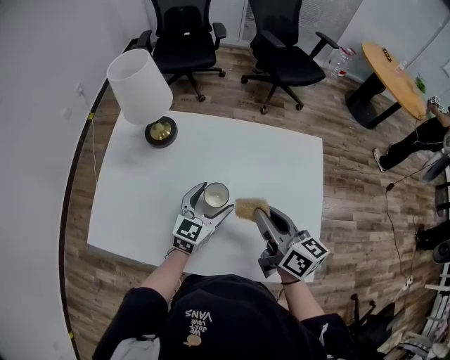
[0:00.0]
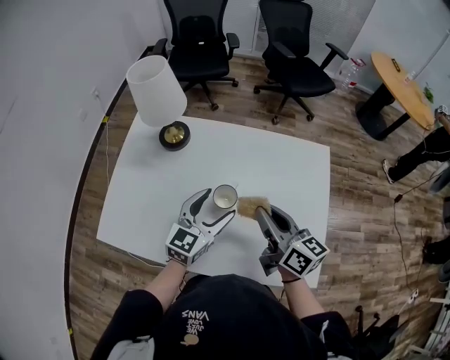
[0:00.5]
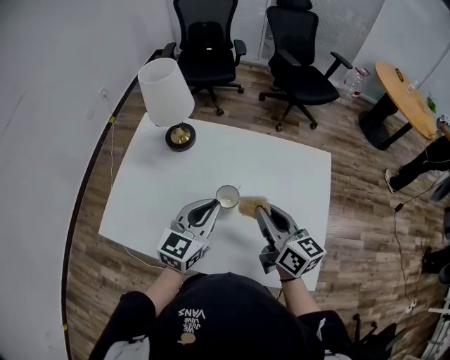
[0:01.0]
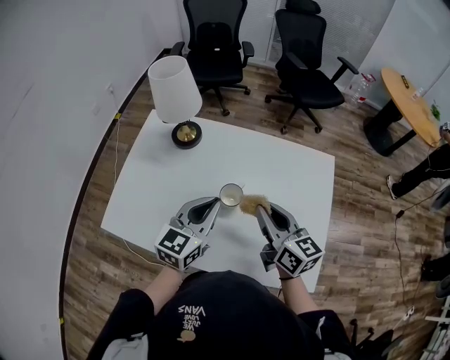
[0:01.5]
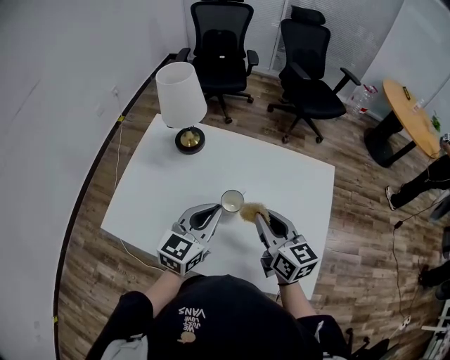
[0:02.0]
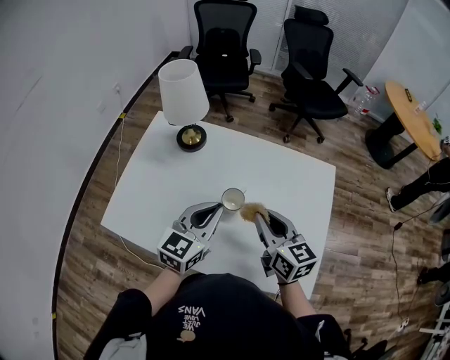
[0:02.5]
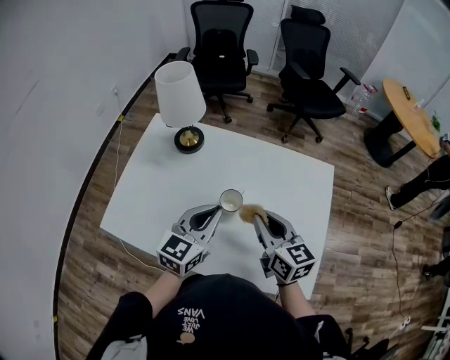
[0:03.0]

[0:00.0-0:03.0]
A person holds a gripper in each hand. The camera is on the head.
0:00.0 to 0:01.5: The left gripper shifts roughly 15 cm upward and backward, and closes up.
0:01.5 to 0:03.0: The grippers move only a little.

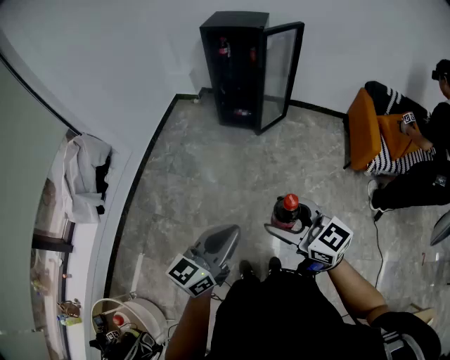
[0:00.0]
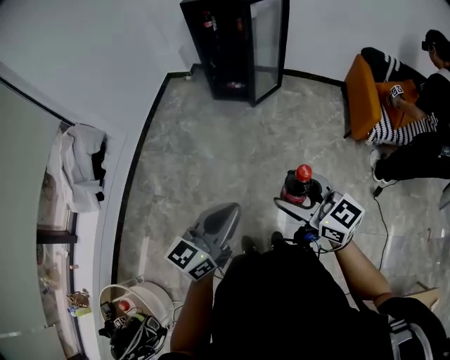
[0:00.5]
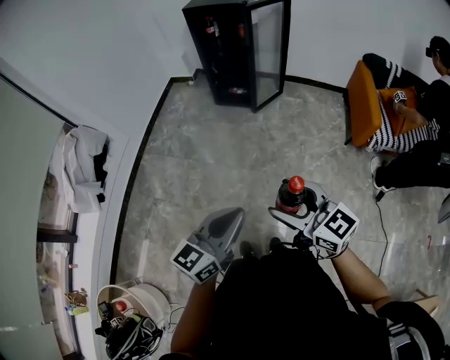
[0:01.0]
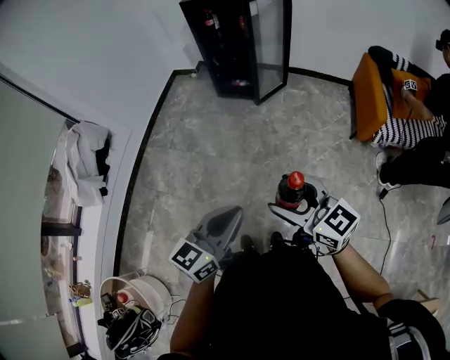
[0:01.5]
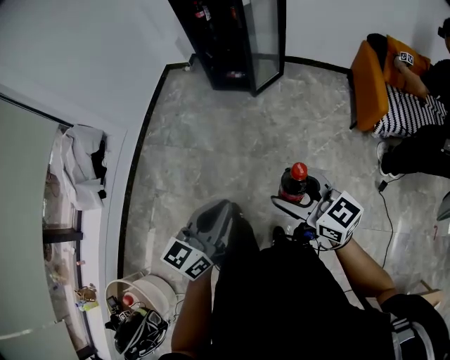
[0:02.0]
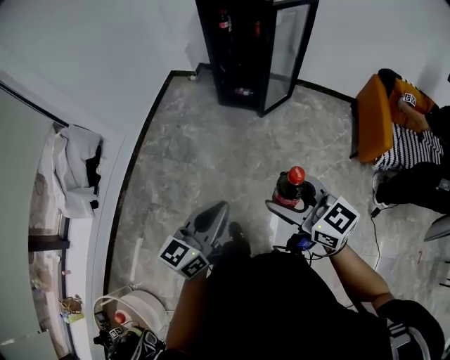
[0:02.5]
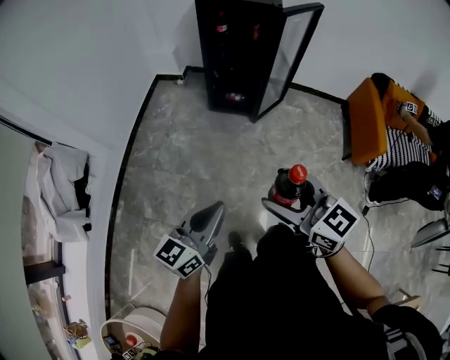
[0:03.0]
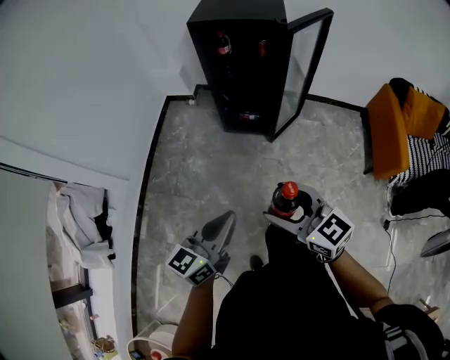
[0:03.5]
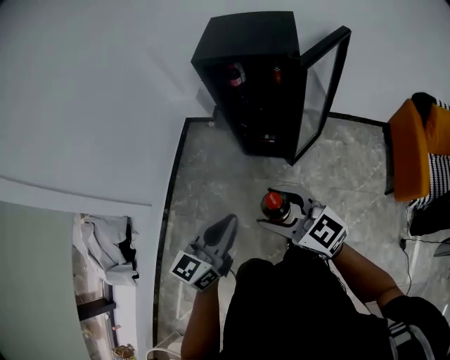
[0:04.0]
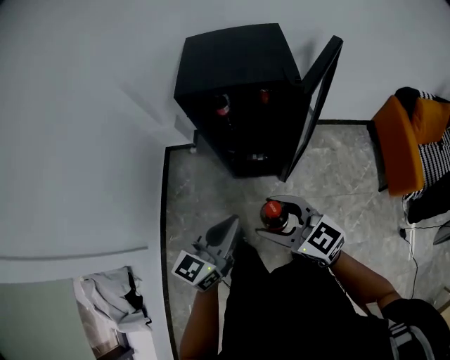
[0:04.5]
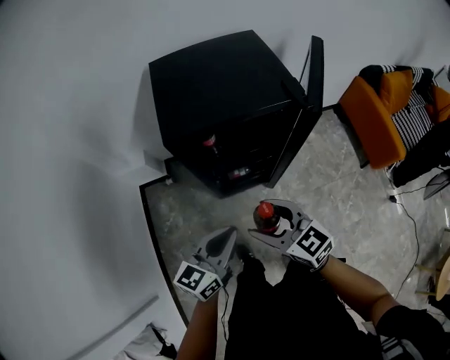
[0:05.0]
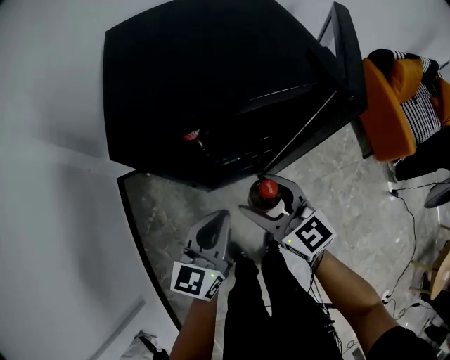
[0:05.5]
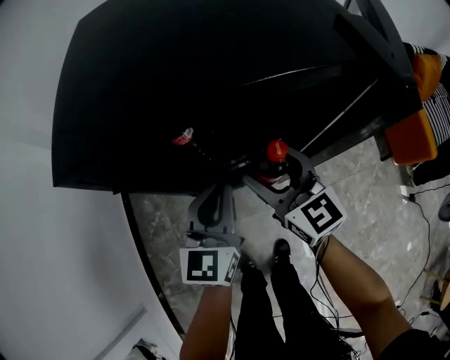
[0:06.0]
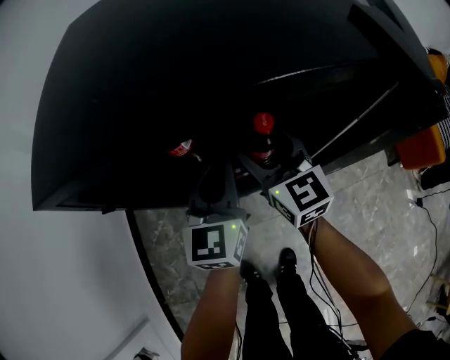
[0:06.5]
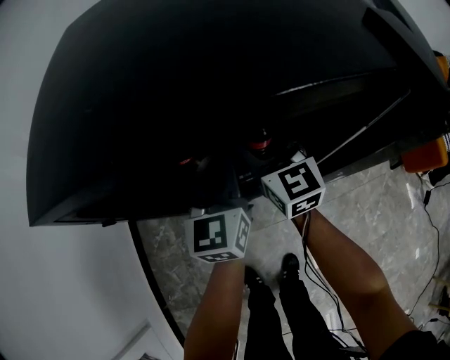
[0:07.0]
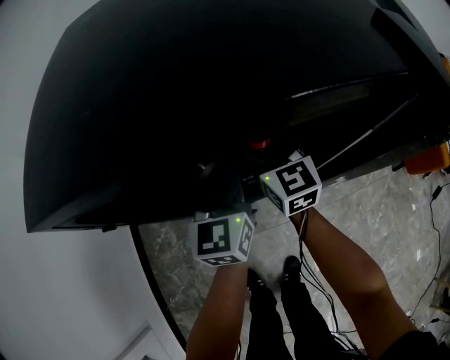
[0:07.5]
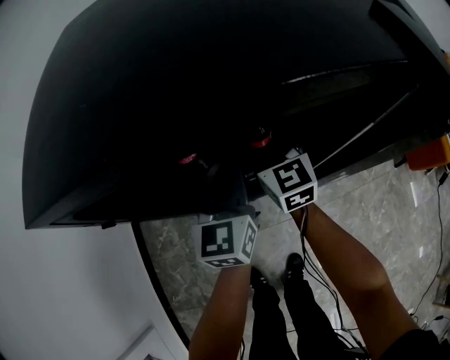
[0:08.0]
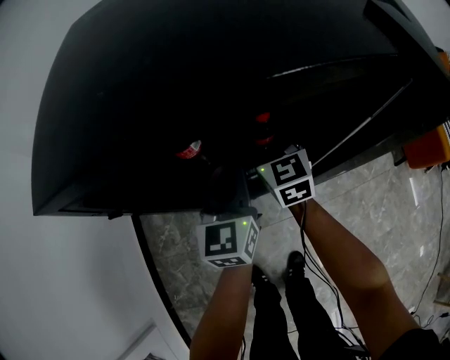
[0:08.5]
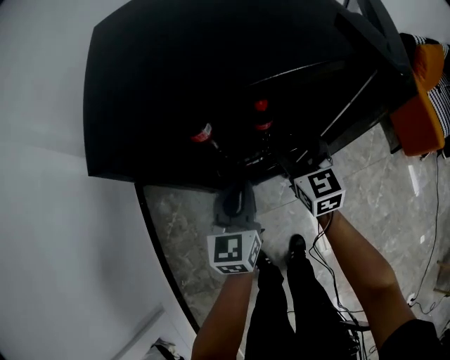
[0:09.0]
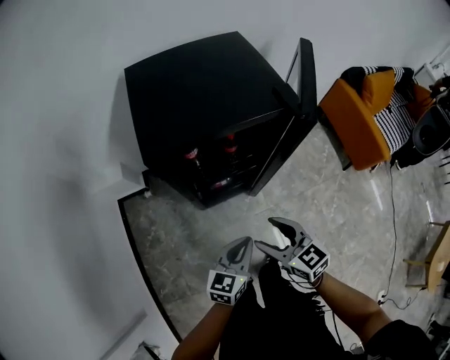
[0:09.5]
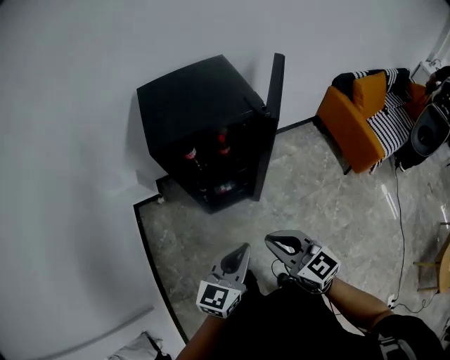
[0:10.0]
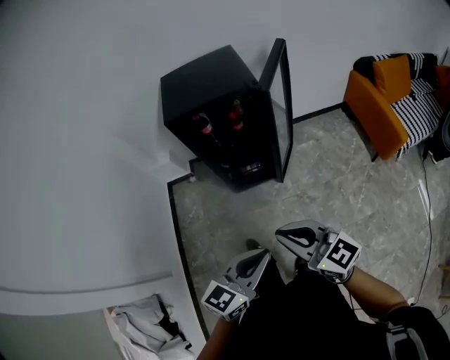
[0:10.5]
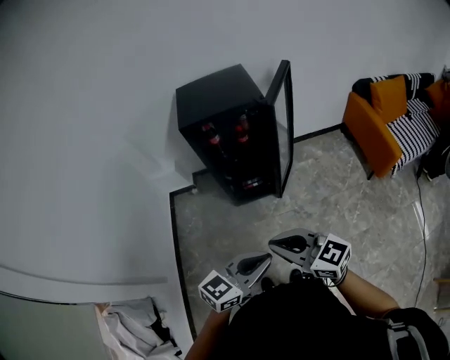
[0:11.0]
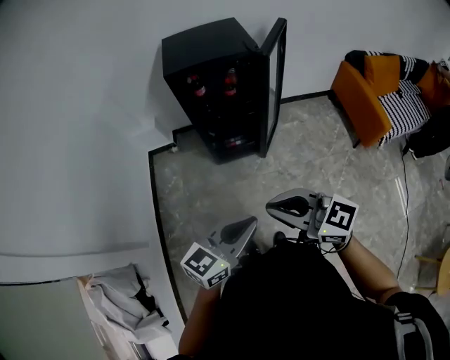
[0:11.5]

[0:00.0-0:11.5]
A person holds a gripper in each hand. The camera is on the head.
0:00.0 to 0:02.0: Both grippers travel together to the right, about 10 cm.
0:02.0 to 0:04.0: Both grippers are carried forward, approximately 50 cm.
0:04.0 to 0:06.0: The two grippers travel together, approximately 50 cm. The right gripper turns by about 50 degrees.
0:06.0 to 0:07.5: The left gripper heads forward, covering roughly 10 cm; the right gripper heads forward and downward, covering some 15 cm.
0:07.5 to 0:09.5: Both grippers move backward, about 30 cm. The left gripper rotates some 30 degrees, while the right gripper swivels roughly 20 degrees.
0:09.5 to 0:11.5: Both grippers travel together backward and upward, some 35 cm. The right gripper turns by roughly 40 degrees, and closes up.

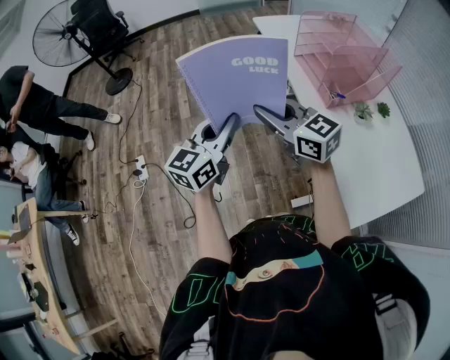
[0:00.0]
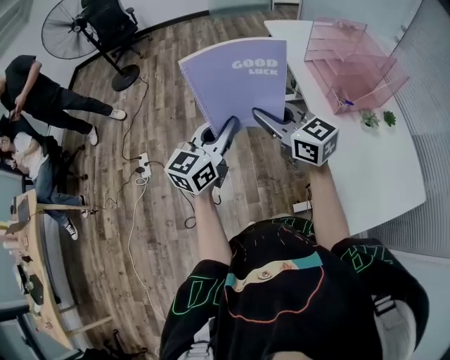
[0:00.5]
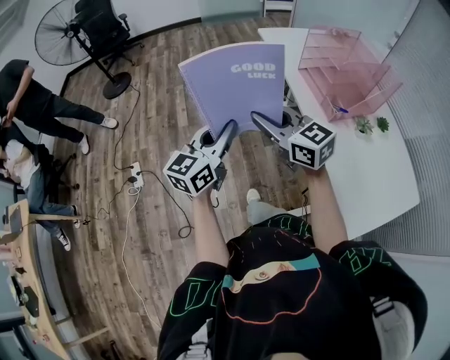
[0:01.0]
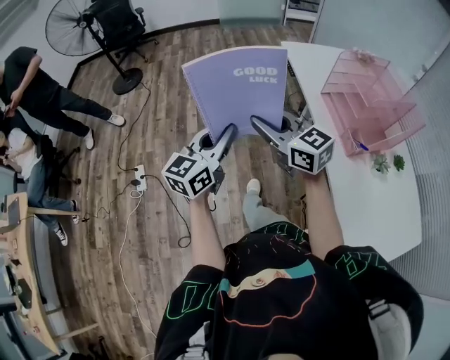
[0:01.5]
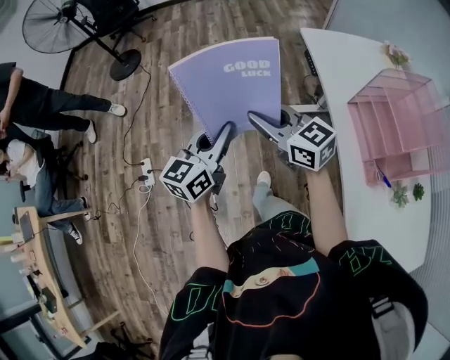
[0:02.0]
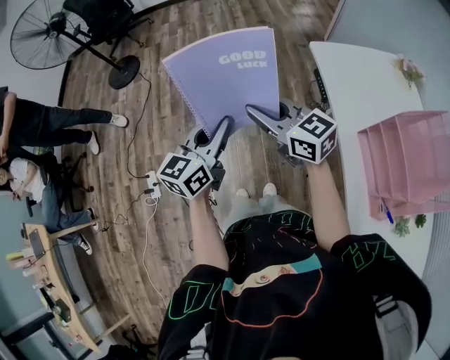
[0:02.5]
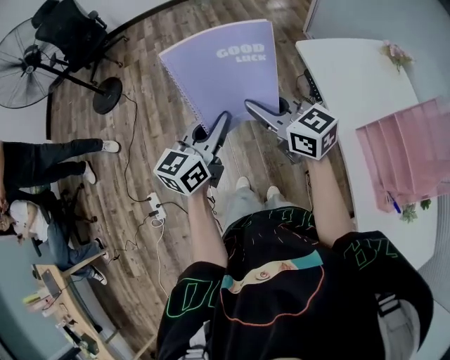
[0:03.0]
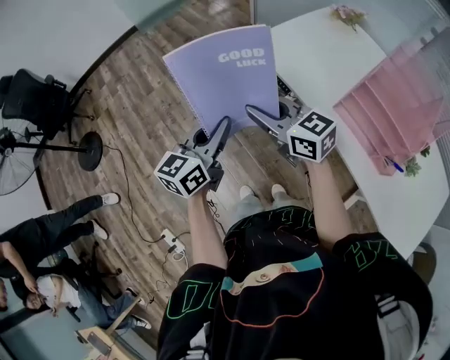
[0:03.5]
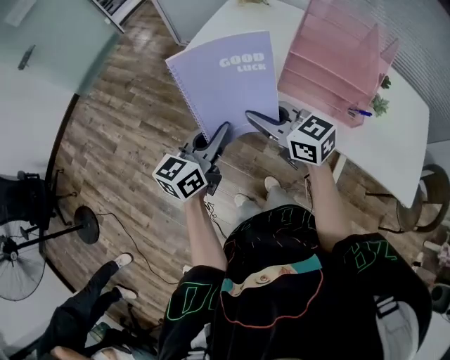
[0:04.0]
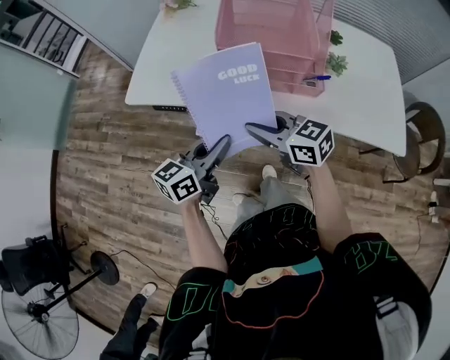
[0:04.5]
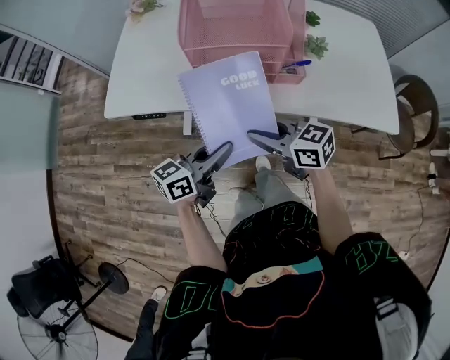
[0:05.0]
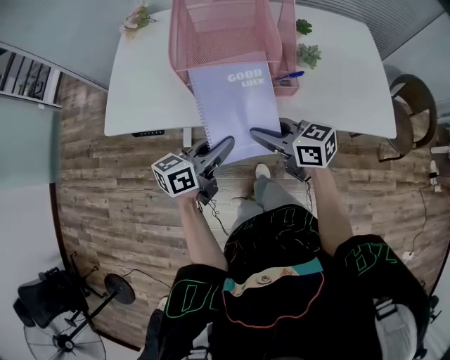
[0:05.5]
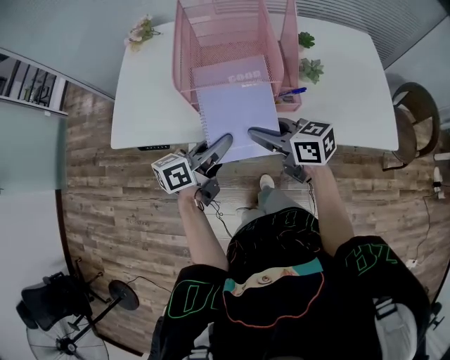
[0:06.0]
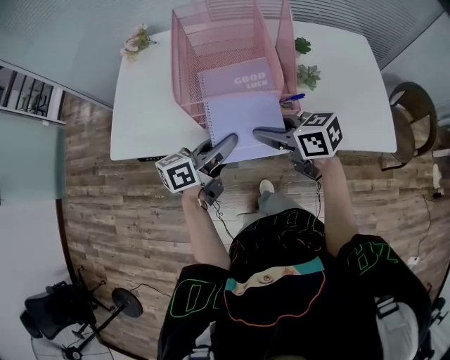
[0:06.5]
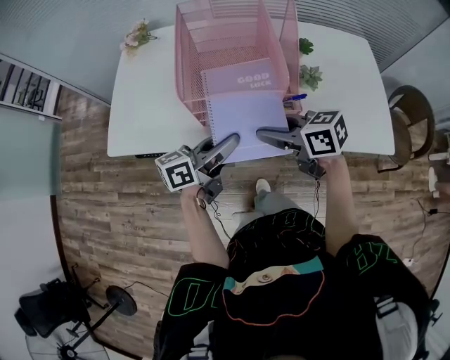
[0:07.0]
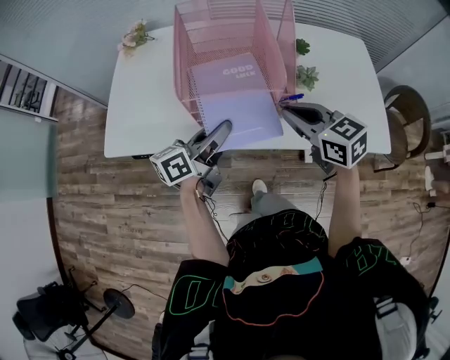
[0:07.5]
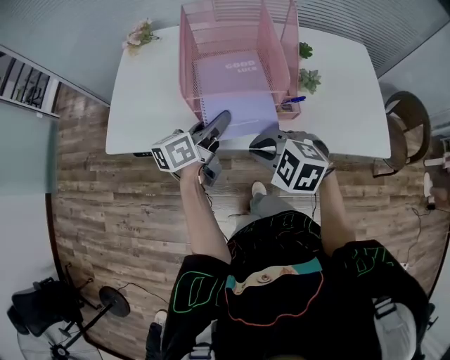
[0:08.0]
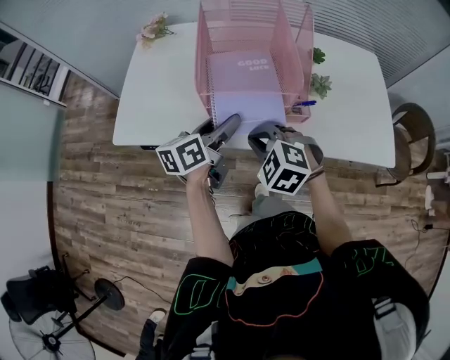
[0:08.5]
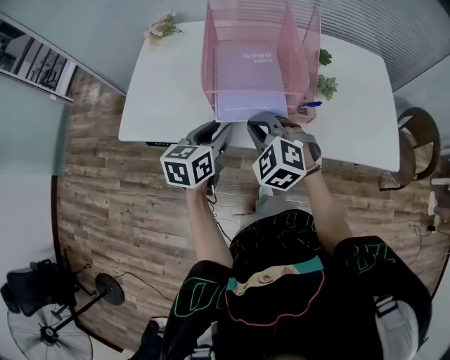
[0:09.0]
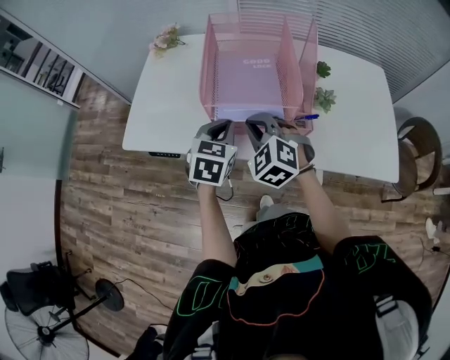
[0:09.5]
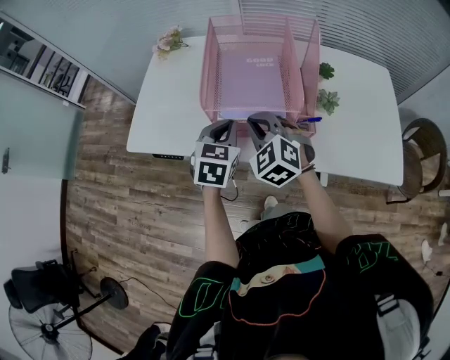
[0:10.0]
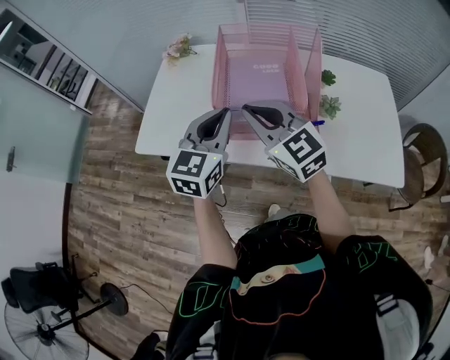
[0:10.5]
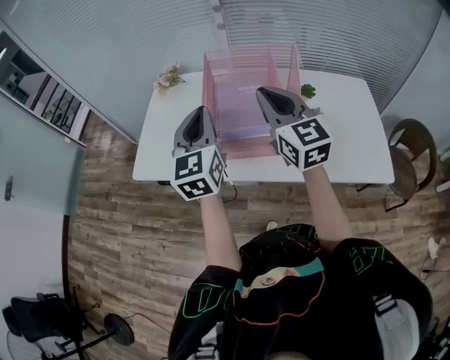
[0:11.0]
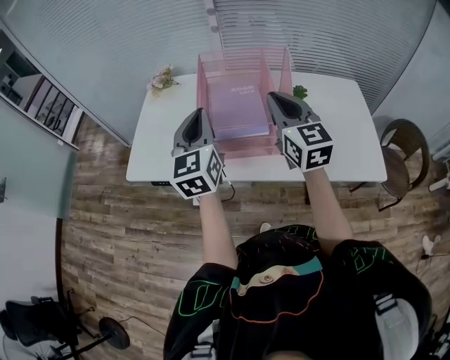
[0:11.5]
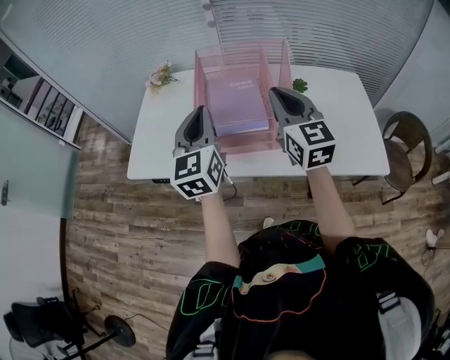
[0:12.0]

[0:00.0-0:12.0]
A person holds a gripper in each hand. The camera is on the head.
0:00.0 to 0:02.0: Both grippers travel together forward, roughly 30 cm.
0:02.0 to 0:04.0: The left gripper changes place by roughly 30 cm, and rotates some 60 degrees. The right gripper moves about 25 cm, and turns by approximately 50 degrees.
0:04.0 to 0:06.0: The right gripper moves roughly 25 cm, and turns by roughly 30 degrees. The left gripper moves about 25 cm, and swivels roughly 40 degrees.
0:06.0 to 0:08.0: The left gripper moves forward, approximately 10 cm. The right gripper goes to the right and returns, about 10 cm each way, and rolls counterclockwise, seen from behind, by approximately 50 degrees.
0:08.0 to 0:10.0: The left gripper rotates roughly 60 degrees, and closes up; the right gripper moves forward, roughly 10 cm, and rotates some 30 degrees.
0:10.0 to 0:12.0: The right gripper moves upward and to the right, roughly 20 cm, and tilts its fingers about 30 degrees upward; the left gripper moves upward, about 15 cm, and tips its fingers upward by about 40 degrees.
